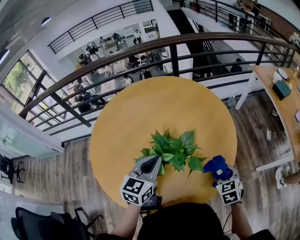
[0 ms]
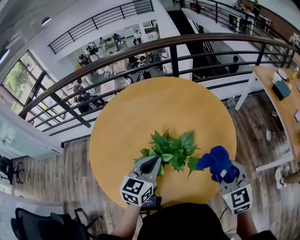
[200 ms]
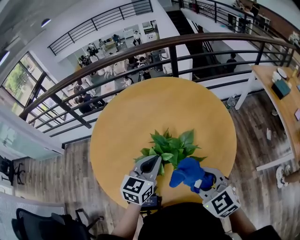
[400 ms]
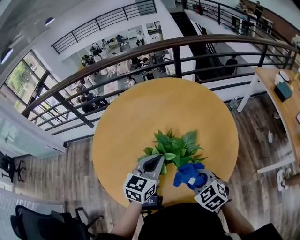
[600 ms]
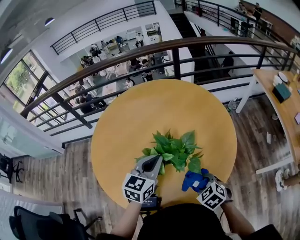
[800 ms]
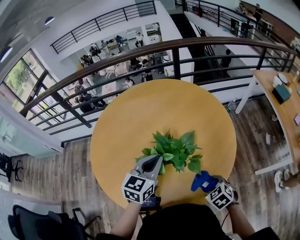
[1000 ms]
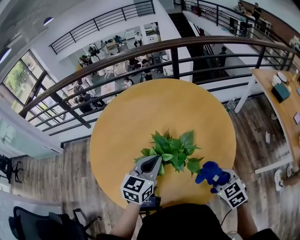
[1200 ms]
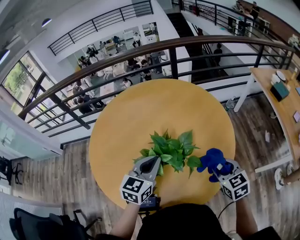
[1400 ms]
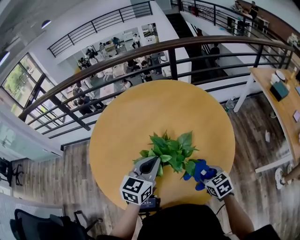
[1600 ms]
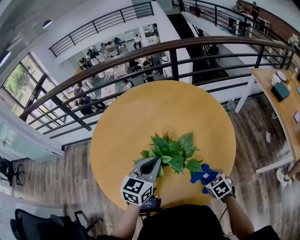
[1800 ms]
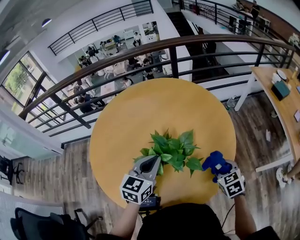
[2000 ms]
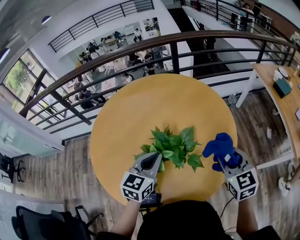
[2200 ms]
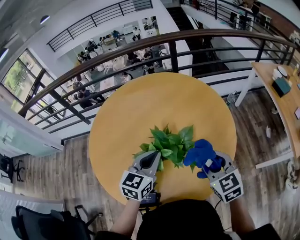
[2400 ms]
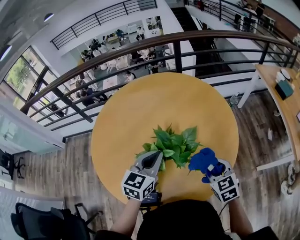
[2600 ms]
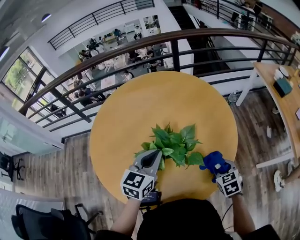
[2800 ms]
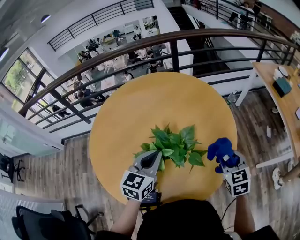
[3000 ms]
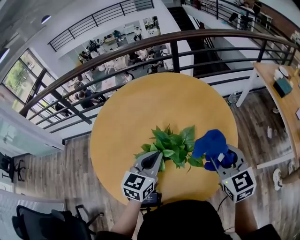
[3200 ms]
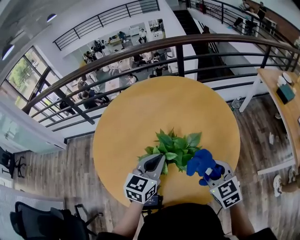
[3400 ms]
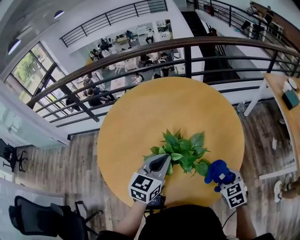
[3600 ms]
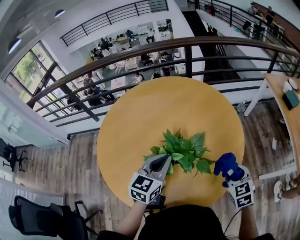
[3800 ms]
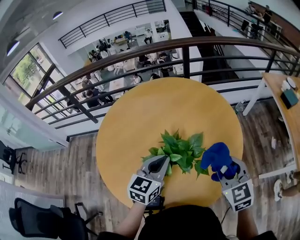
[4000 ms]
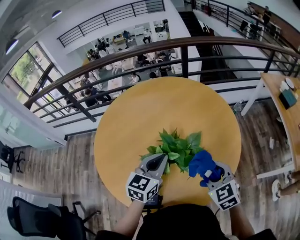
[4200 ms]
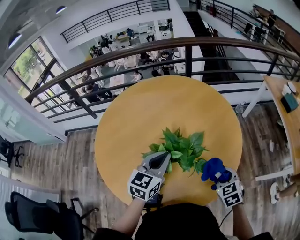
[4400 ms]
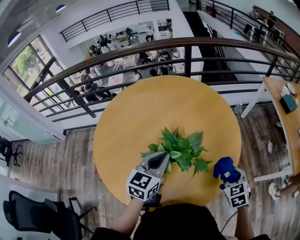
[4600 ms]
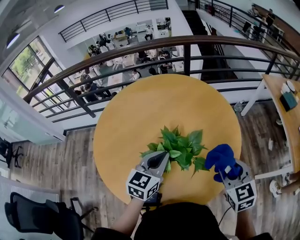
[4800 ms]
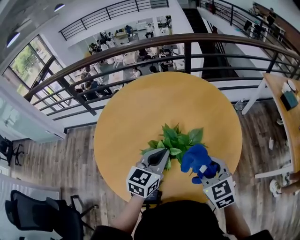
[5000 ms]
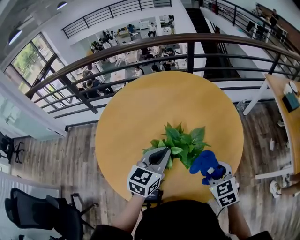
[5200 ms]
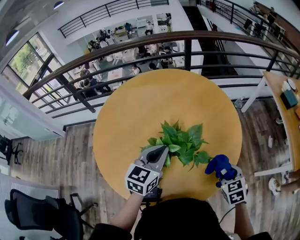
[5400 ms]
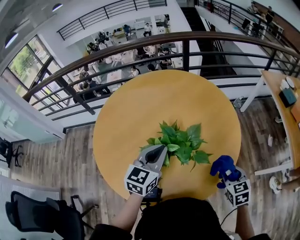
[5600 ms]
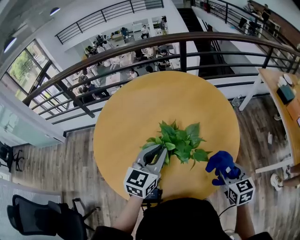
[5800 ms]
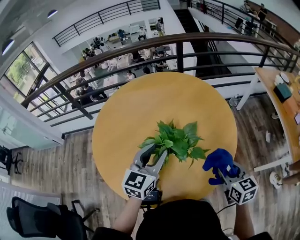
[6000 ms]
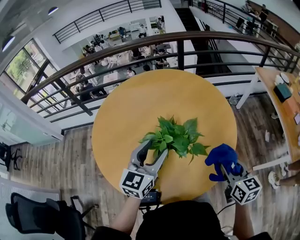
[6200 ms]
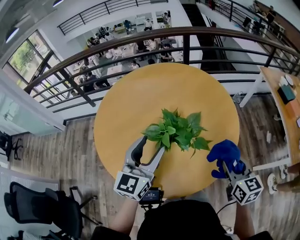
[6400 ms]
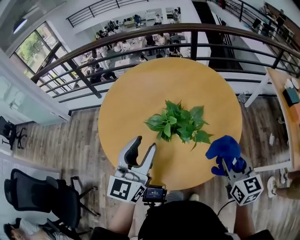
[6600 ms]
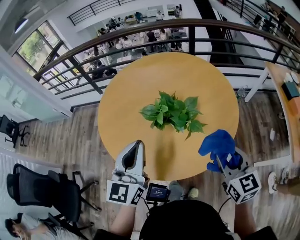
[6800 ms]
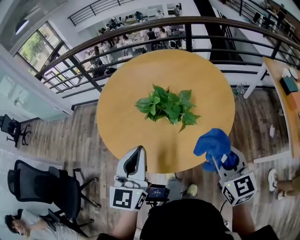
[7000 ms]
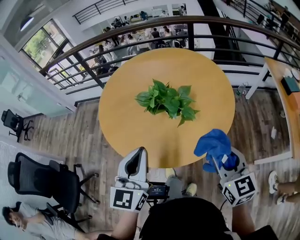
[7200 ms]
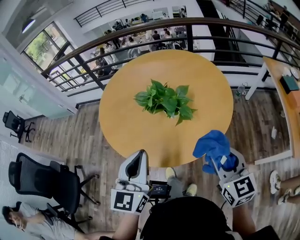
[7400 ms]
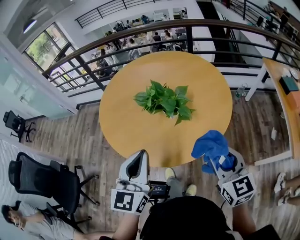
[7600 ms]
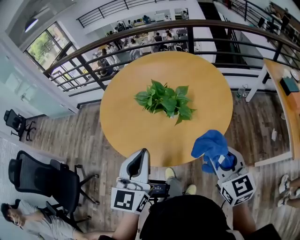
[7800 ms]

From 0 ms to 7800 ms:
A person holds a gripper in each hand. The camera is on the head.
From 0 ms to 1600 ms: The right gripper moves up and down over roughly 20 cm, changing direction 3 times, and turns by roughly 20 degrees.
From 1600 ms to 3200 ms: The right gripper goes up and down, about 25 cm each way, reversing 3 times, and changes its angle by approximately 30 degrees.
From 3200 ms to 4600 ms: The right gripper moves up and down over about 15 cm, changing direction 2 times, and changes its angle by about 30 degrees.
From 4600 ms to 6200 ms: The right gripper moves upward, some 10 cm, moves some 15 cm to the left and comes back, and changes its angle by roughly 40 degrees. Meanwhile the left gripper moves about 5 cm, and opens.
From 6200 ms to 7800 ms: The left gripper travels backward by roughly 25 cm, swivels about 20 degrees, and closes, while the right gripper heads backward and upward, covering some 15 cm, and swivels some 30 degrees.

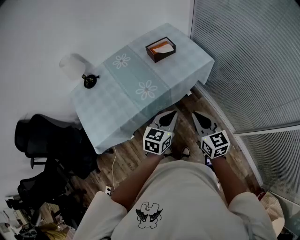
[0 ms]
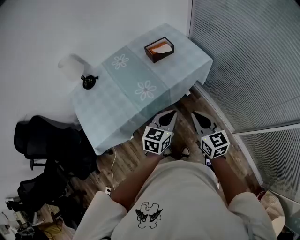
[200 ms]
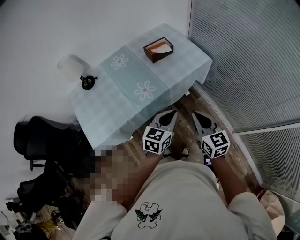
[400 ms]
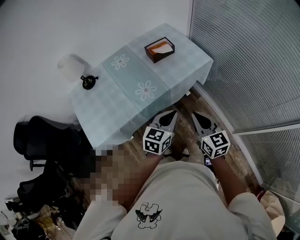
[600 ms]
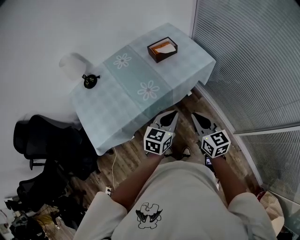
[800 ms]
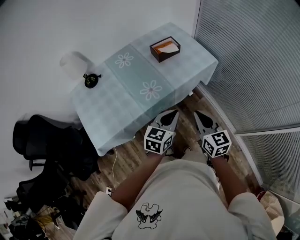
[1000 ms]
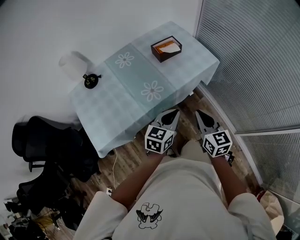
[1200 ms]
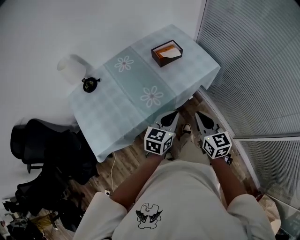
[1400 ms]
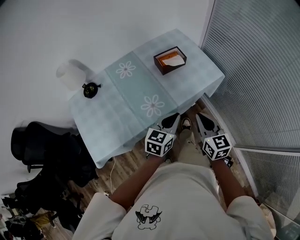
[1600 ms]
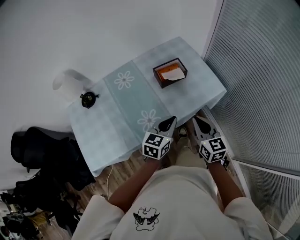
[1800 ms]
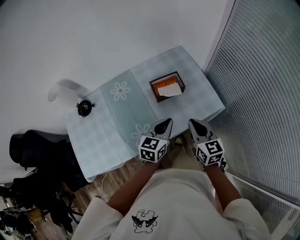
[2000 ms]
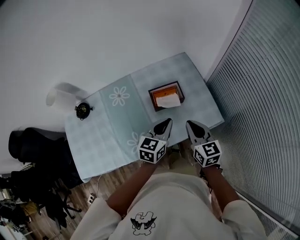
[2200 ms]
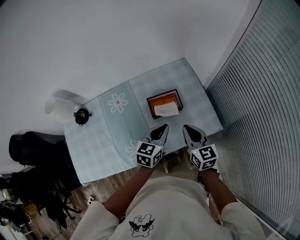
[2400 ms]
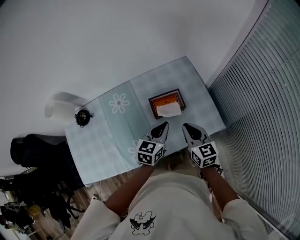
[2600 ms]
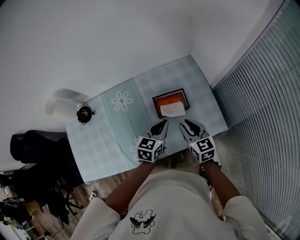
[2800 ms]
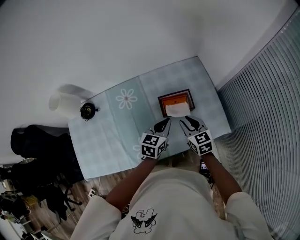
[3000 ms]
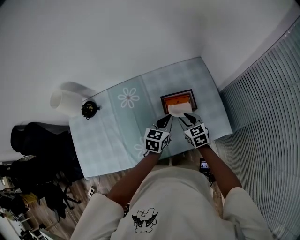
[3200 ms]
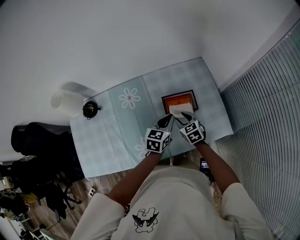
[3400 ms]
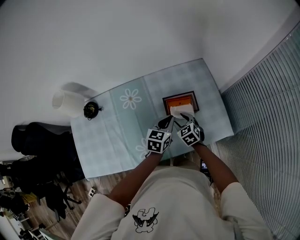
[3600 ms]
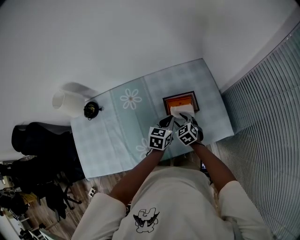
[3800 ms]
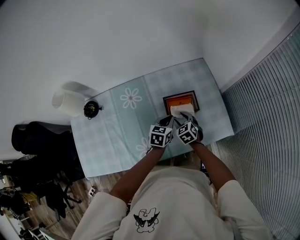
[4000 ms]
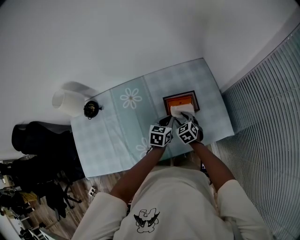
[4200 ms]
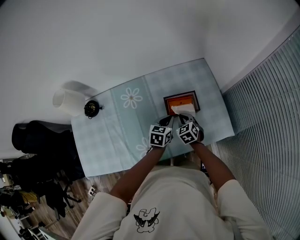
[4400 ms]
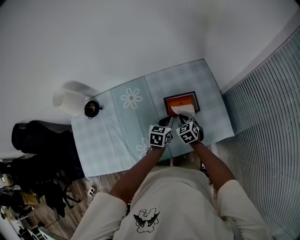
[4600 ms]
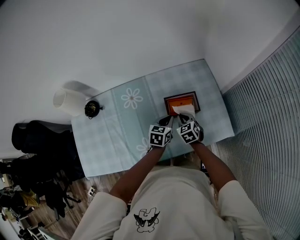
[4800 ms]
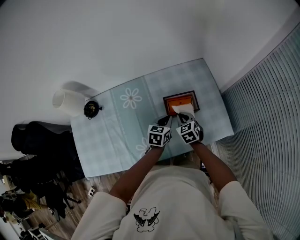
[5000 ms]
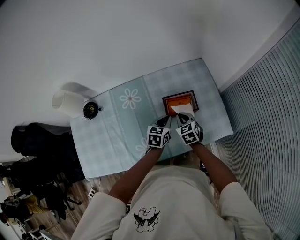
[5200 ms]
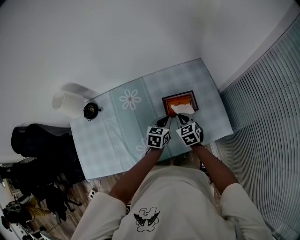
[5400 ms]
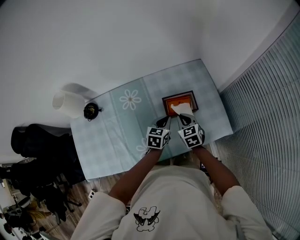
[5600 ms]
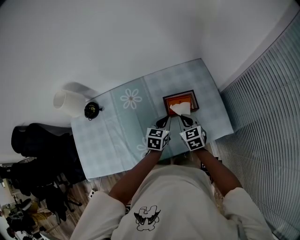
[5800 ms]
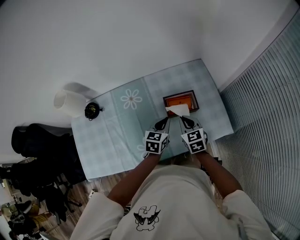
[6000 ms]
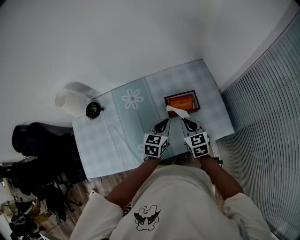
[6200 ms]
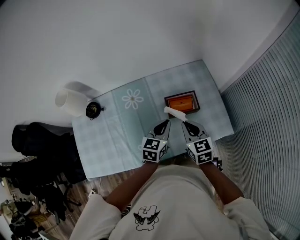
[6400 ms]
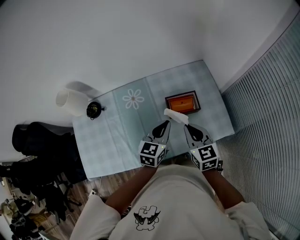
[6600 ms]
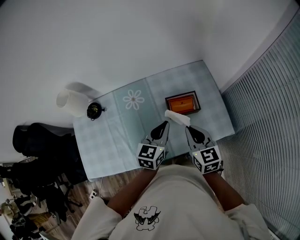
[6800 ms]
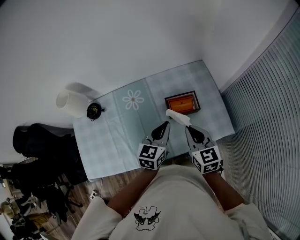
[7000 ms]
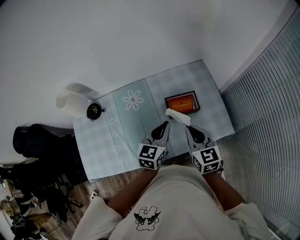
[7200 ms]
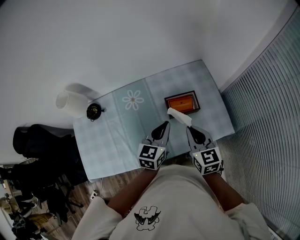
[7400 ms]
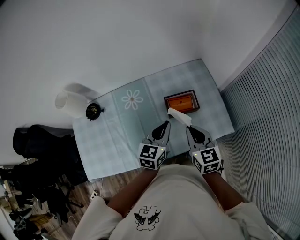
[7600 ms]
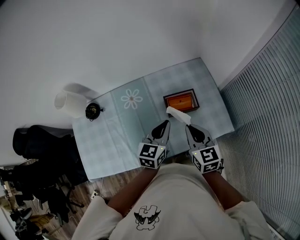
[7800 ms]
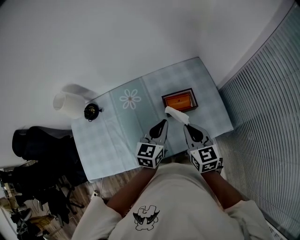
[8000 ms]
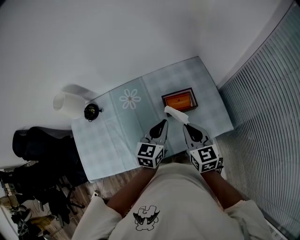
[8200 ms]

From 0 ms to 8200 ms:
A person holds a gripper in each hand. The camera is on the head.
From 0 ms to 1600 ms: Both grippers travel together forward, about 15 cm.
From 1600 ms to 3200 ms: The two grippers go approximately 35 cm forward. The left gripper rotates some 20 degrees; the right gripper swivels some 30 degrees, and opens.
From 3200 ms to 5000 ms: The right gripper closes up. The left gripper heads downward, covering approximately 5 cm.
From 5000 ms to 6600 ms: The left gripper travels upward by some 15 cm, while the right gripper moves upward and backward, roughly 20 cm, and rotates some 20 degrees.
From 6600 ms to 8200 ms: The grippers move only a little.

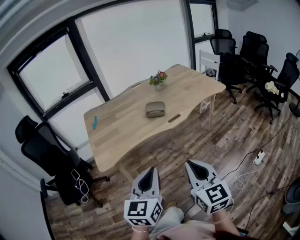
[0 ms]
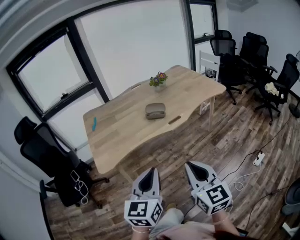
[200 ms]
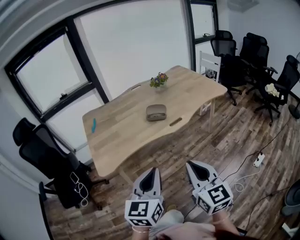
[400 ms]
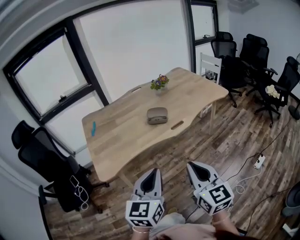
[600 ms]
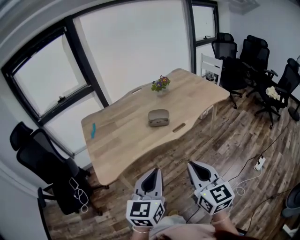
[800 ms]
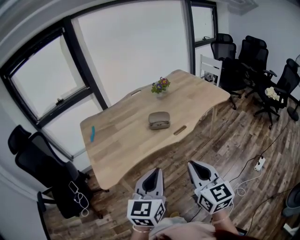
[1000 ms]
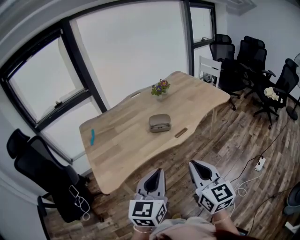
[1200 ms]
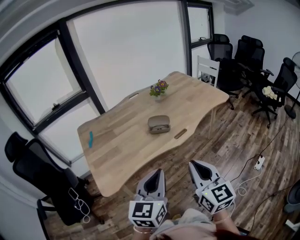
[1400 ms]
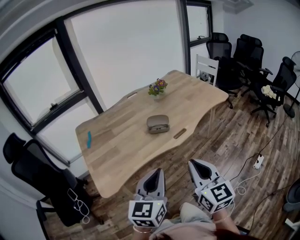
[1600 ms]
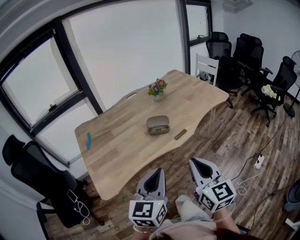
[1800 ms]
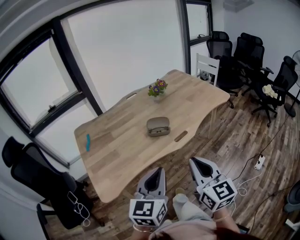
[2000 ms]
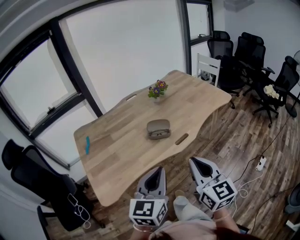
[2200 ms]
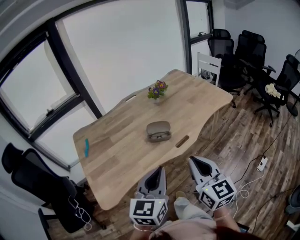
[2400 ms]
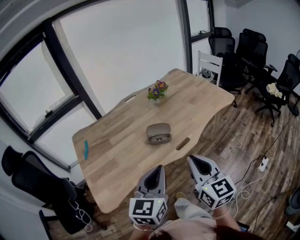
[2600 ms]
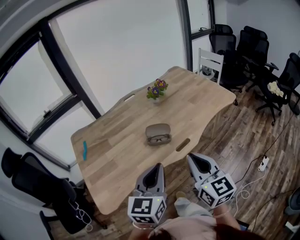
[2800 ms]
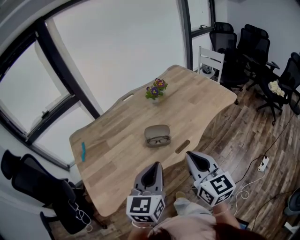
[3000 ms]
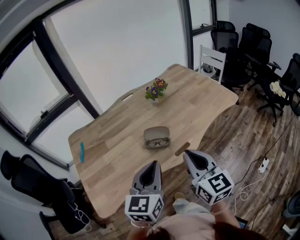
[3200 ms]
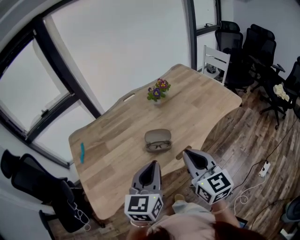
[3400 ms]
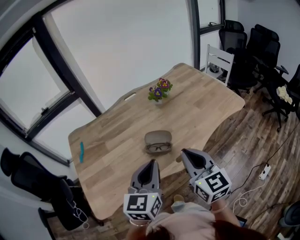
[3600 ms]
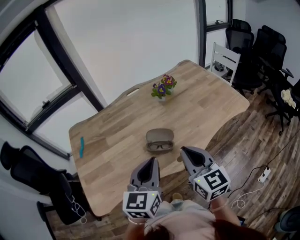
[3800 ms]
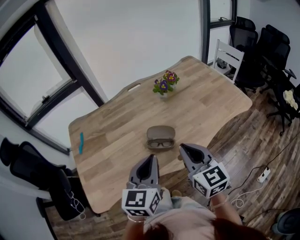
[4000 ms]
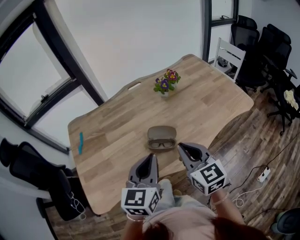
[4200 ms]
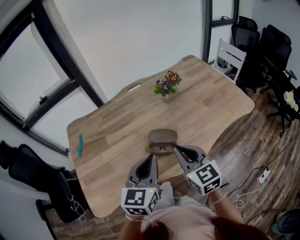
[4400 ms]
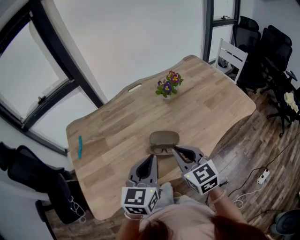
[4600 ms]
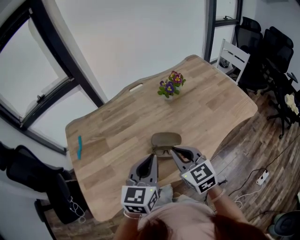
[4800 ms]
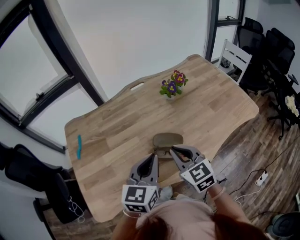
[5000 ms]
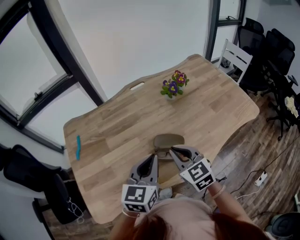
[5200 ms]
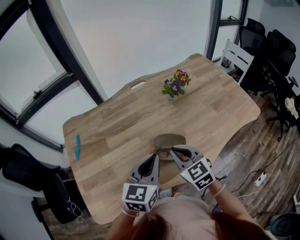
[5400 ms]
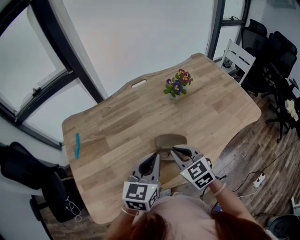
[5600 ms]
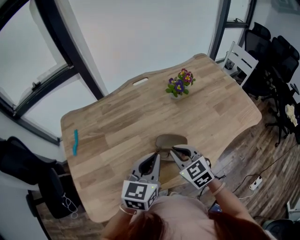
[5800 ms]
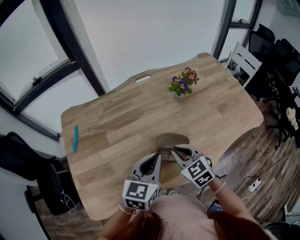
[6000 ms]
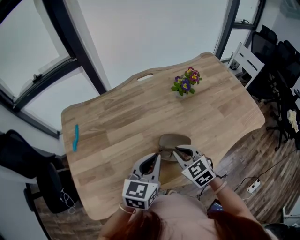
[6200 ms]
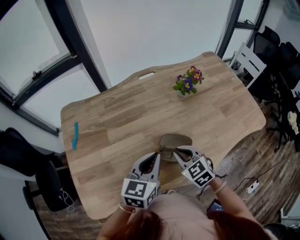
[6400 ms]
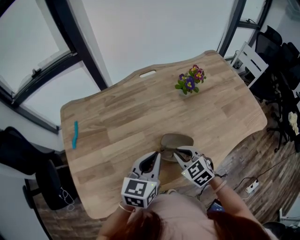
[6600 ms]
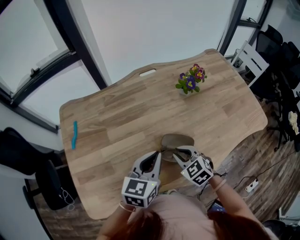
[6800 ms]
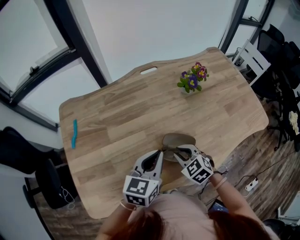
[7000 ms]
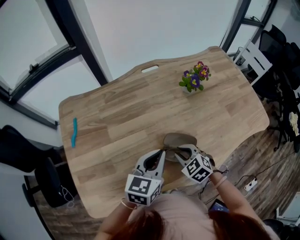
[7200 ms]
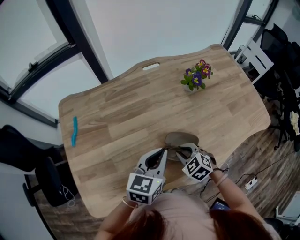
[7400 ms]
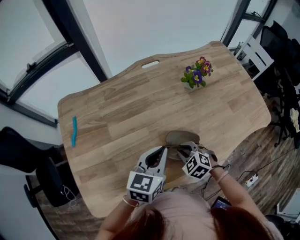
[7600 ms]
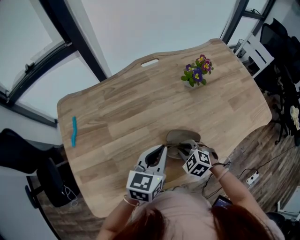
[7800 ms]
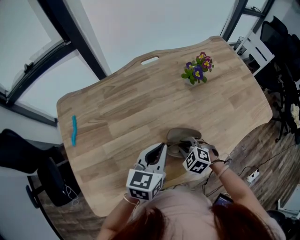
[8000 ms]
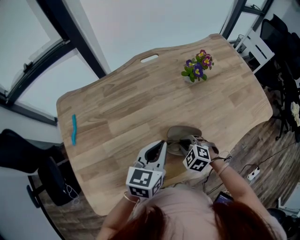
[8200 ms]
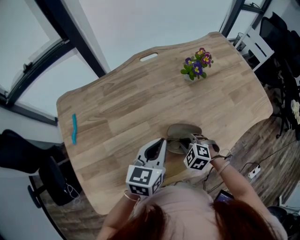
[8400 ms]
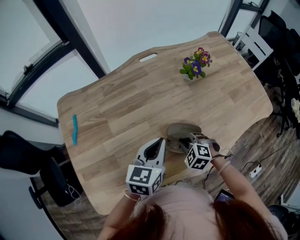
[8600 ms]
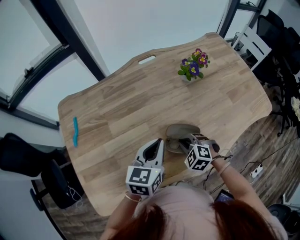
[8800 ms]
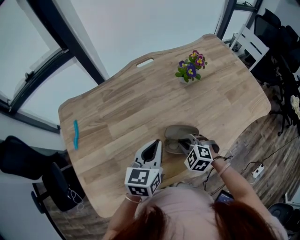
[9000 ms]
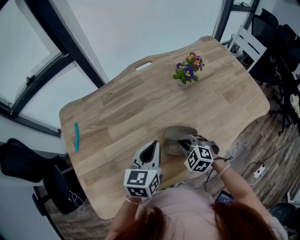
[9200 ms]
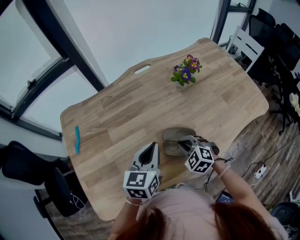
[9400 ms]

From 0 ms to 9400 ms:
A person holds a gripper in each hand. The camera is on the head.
From 0 ms to 1600 ms: Both grippers travel together forward, approximately 15 cm.
From 1600 ms to 3200 ms: The two grippers go roughly 20 cm forward.
From 3200 ms to 4800 ms: The right gripper heads forward, downward and to the left, covering roughly 20 cm, and swivels some 30 degrees. The left gripper travels forward by some 15 cm.
From 4800 ms to 6200 ms: The two grippers go some 10 cm downward and forward. The right gripper turns by approximately 20 degrees.
From 6200 ms to 7800 ms: The right gripper shifts about 10 cm downward, and swivels roughly 30 degrees, while the left gripper ends up some 5 cm from where it was.
From 7800 ms to 9400 ms: There are only small adjustments of the grippers.
